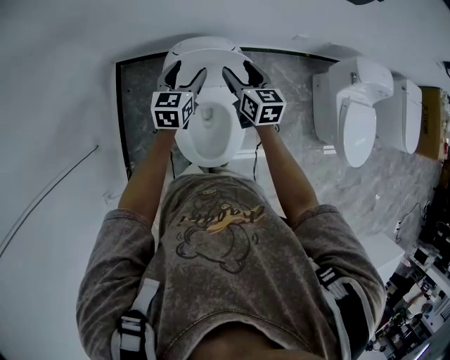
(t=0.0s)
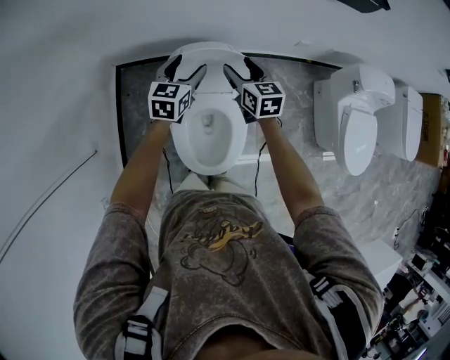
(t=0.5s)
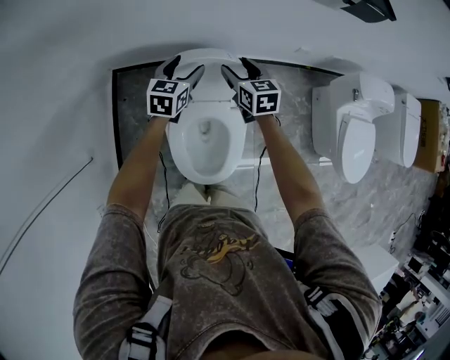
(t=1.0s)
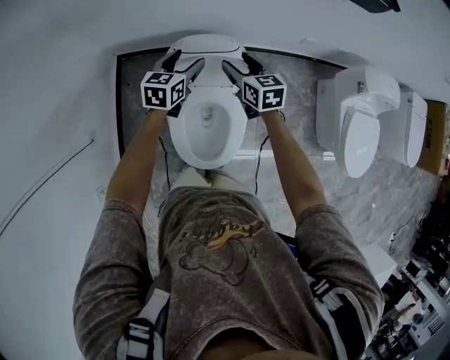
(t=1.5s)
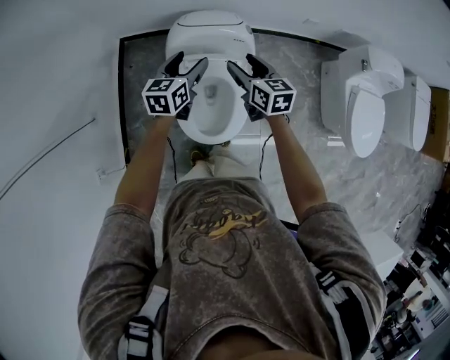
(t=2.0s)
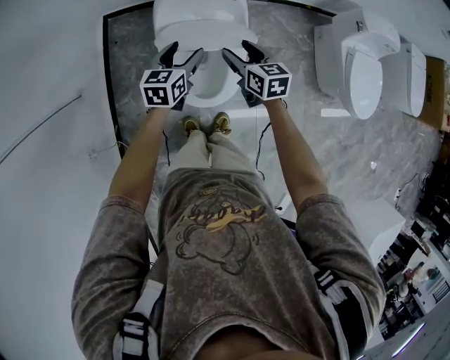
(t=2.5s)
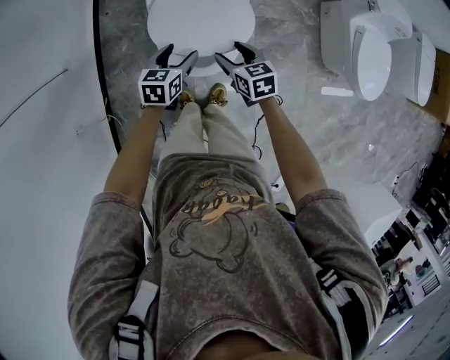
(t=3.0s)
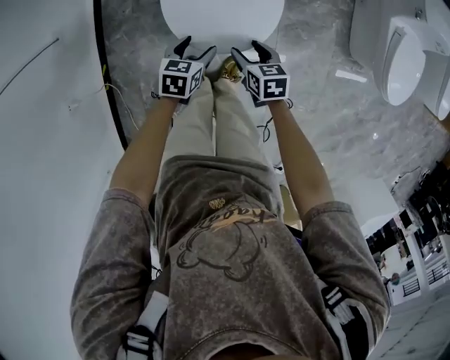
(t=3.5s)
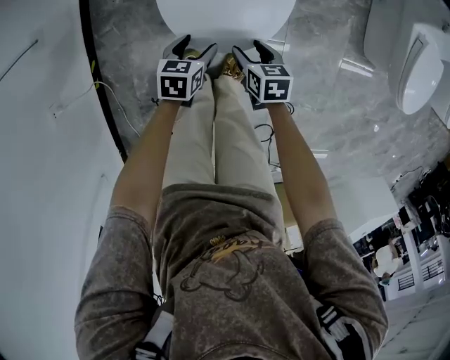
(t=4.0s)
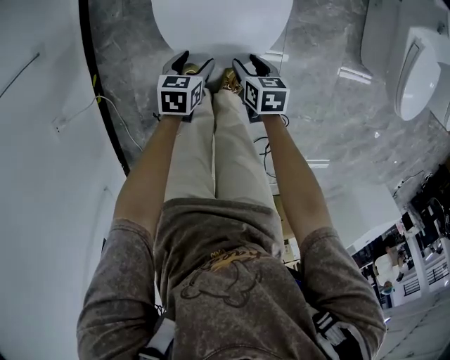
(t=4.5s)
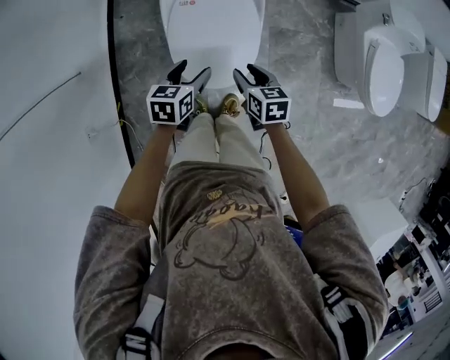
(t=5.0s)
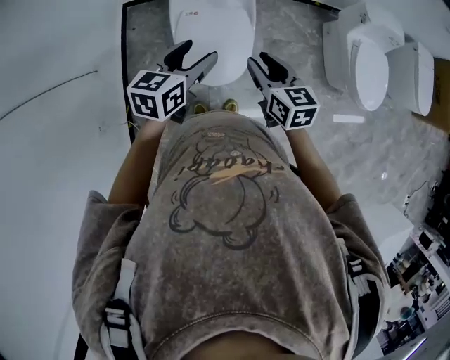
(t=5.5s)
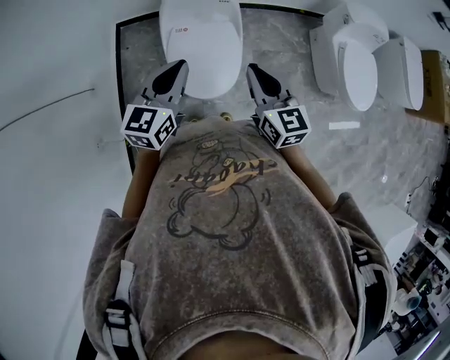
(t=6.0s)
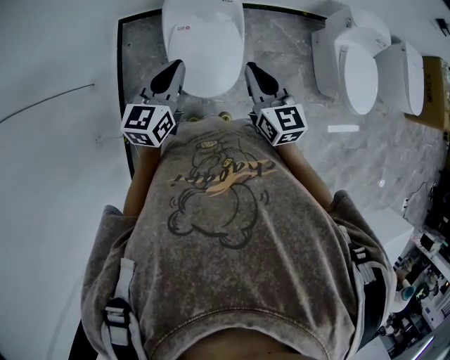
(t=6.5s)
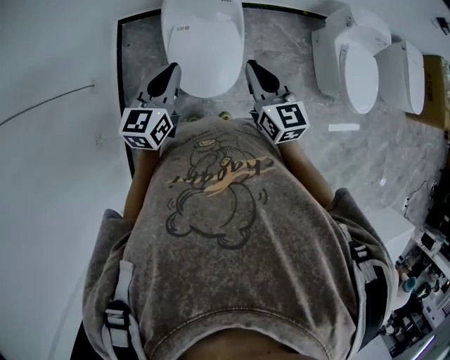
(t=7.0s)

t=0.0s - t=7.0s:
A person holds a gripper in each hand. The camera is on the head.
t=0.0s - t=2.0s: The two grippers go roughly 5 cm backward.
t=2.0s - t=3.5s: The two grippers go some 40 cm backward and downward. The right gripper swivels roughly 30 degrees; the left gripper changes its angle by about 30 degrees.
t=3.5s - t=5.0s: Both grippers travel together upward, some 15 cm.
t=5.0s - t=7.0s: The two grippers go about 25 cm upward. The left gripper changes its angle by roughly 30 degrees, and closes, while the right gripper points its fingers some 30 degrees further upward, and closes its fingers.

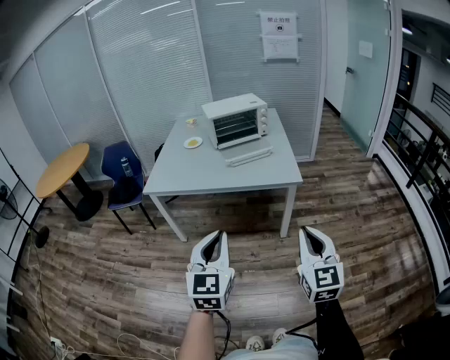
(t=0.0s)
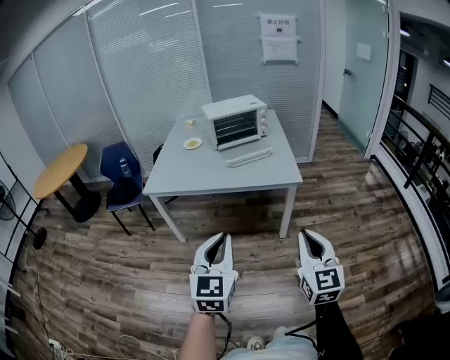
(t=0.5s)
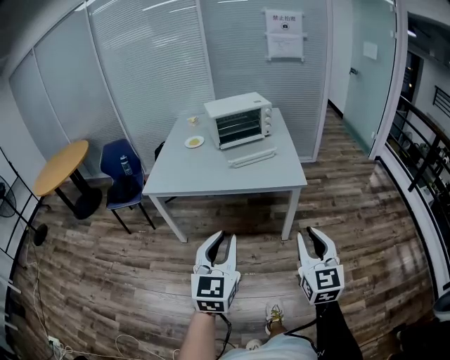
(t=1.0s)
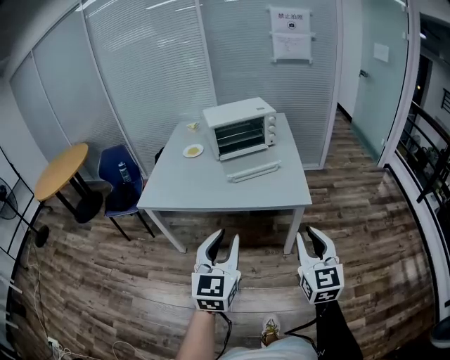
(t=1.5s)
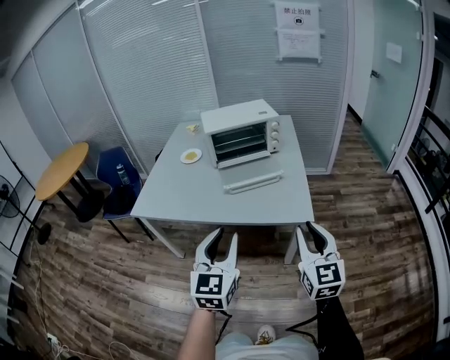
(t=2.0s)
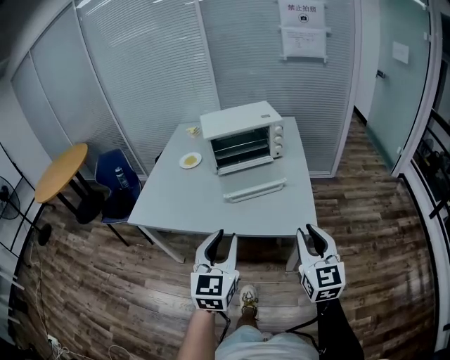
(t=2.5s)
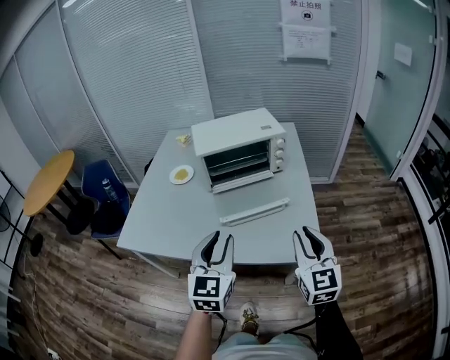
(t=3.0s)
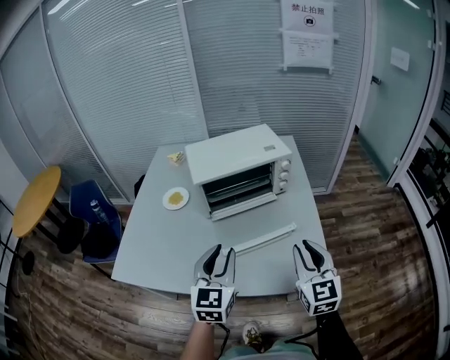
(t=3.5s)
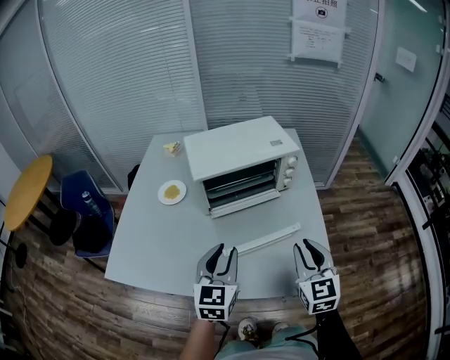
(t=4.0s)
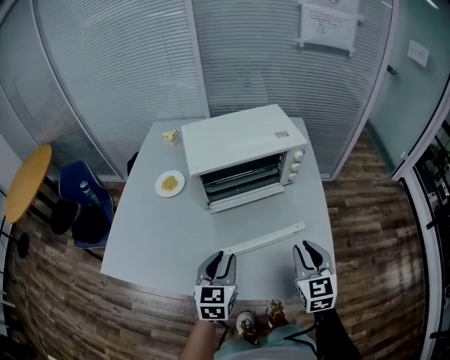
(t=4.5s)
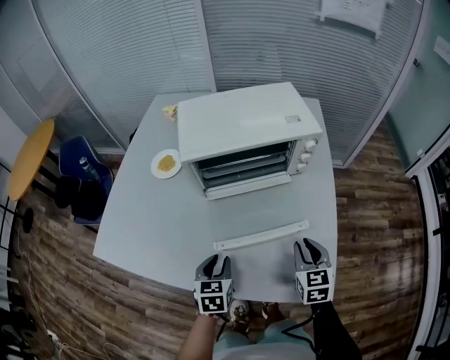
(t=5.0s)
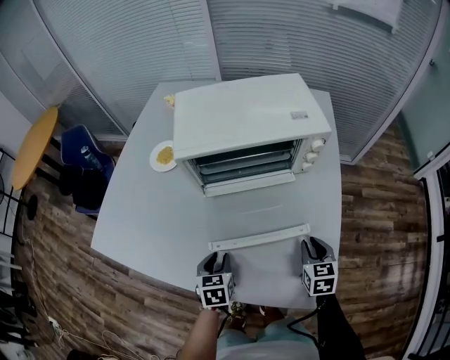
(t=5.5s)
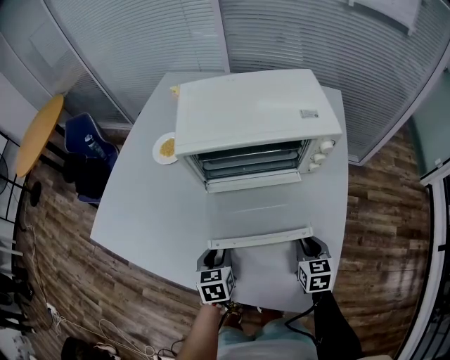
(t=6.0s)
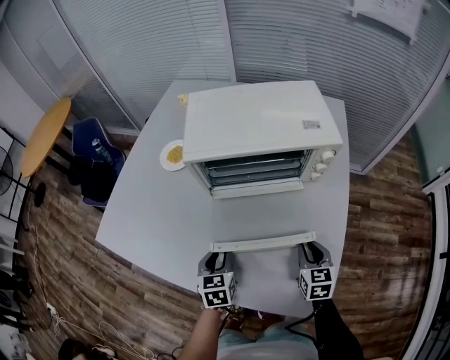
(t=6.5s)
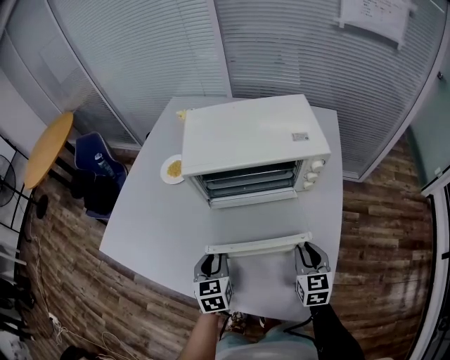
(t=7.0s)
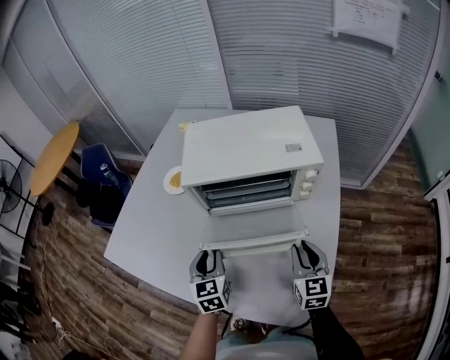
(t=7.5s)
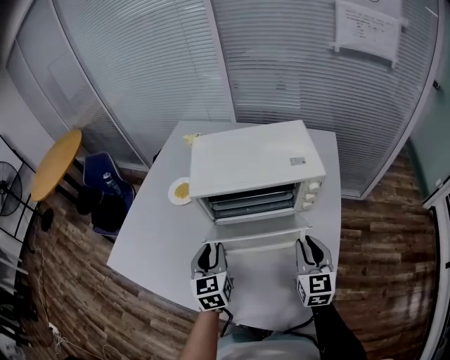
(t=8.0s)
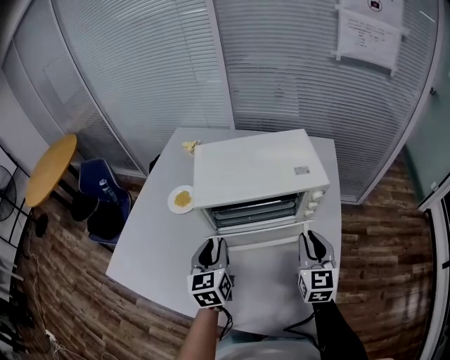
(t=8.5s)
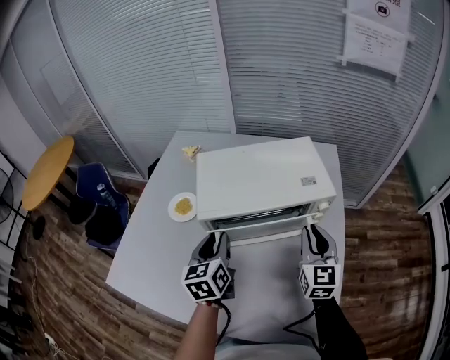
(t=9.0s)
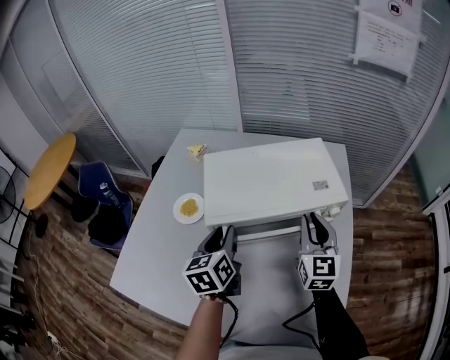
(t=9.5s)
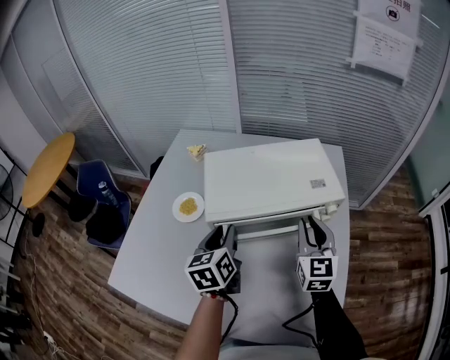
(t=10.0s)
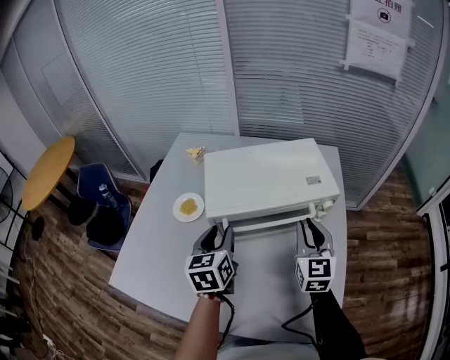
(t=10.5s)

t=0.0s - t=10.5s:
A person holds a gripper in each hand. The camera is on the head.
t=0.0s - t=2.0s: Both grippers travel together forward, about 25 cm.
t=2.0s - t=4.0s: Both grippers travel together forward, about 35 cm.
t=4.0s - t=6.5s: The right gripper heads downward and forward, covering roughly 25 cm, and swivels approximately 30 degrees. Meanwhile the left gripper is displaced downward by some 20 cm, and turns by roughly 40 degrees.
t=6.5s - t=8.5s: Both grippers travel together upward and forward, some 20 cm. The left gripper swivels some 20 degrees. Meanwhile the right gripper changes its angle by roughly 30 degrees.
t=8.5s - t=10.5s: The two grippers go some 5 cm forward.

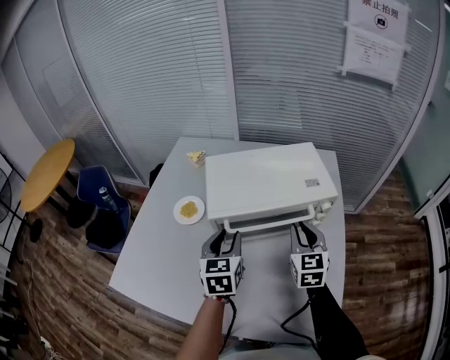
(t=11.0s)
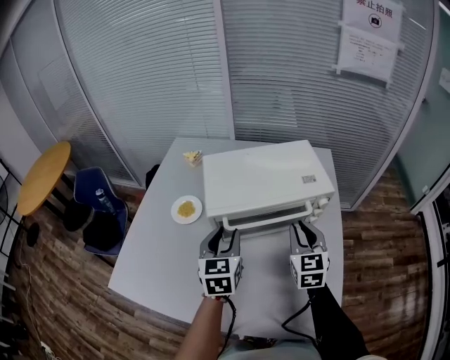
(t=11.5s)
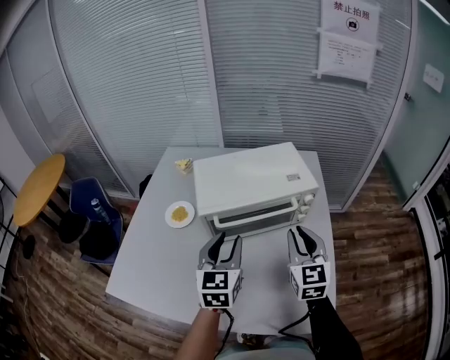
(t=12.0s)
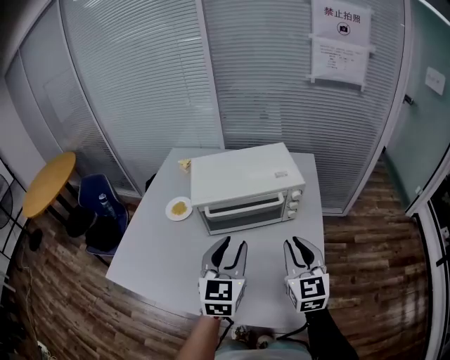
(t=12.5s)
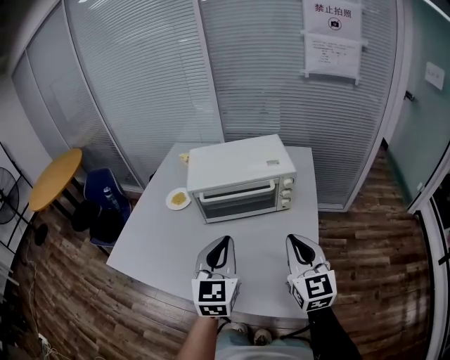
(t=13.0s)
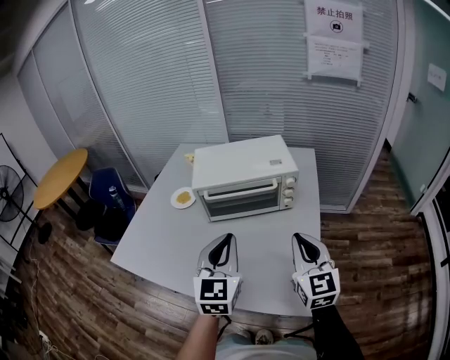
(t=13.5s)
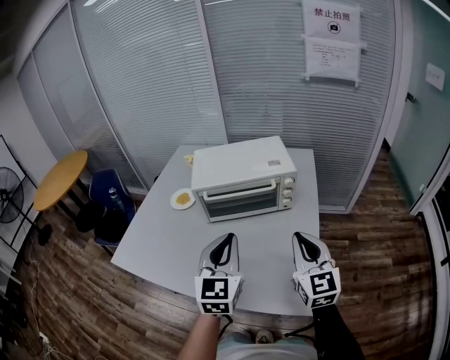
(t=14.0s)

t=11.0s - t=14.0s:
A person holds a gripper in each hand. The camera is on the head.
t=11.0s - t=12.5s: The right gripper goes roughly 15 cm backward and upward. Meanwhile the left gripper travels backward, to the right and upward by some 20 cm.
t=12.5s - t=14.0s: The two grippers go about 5 cm backward. The left gripper closes up.

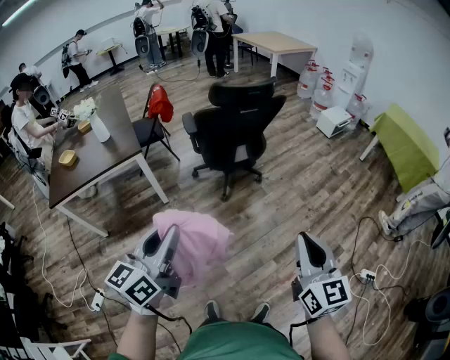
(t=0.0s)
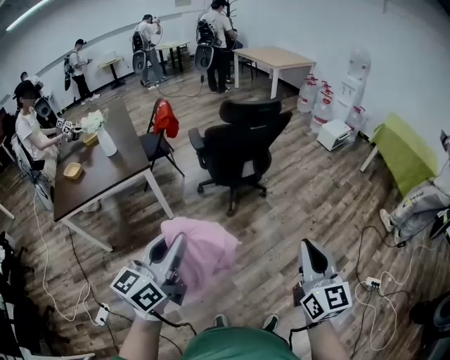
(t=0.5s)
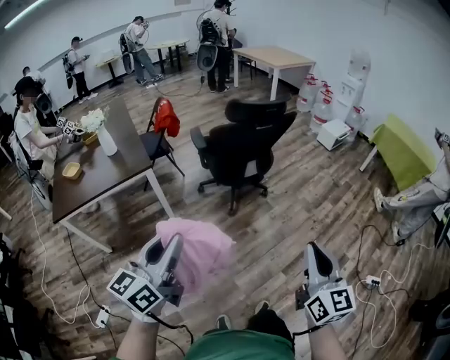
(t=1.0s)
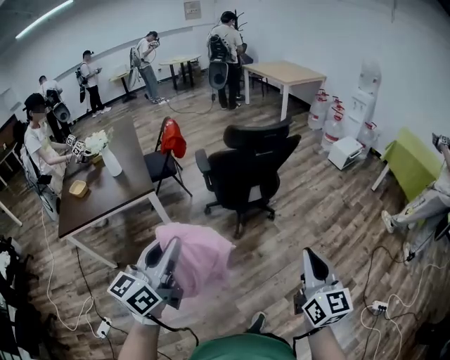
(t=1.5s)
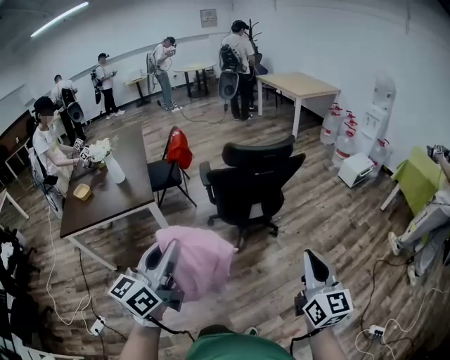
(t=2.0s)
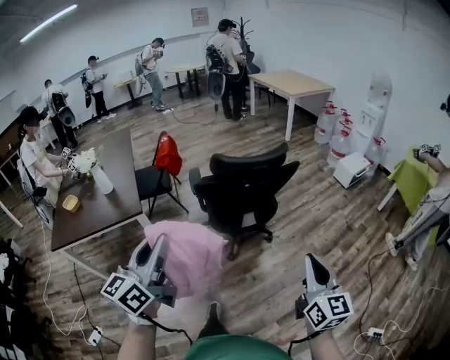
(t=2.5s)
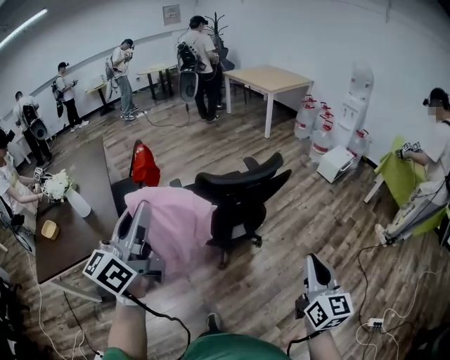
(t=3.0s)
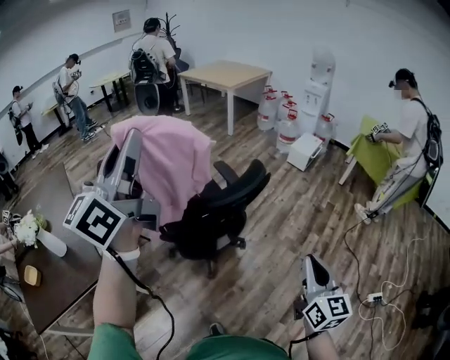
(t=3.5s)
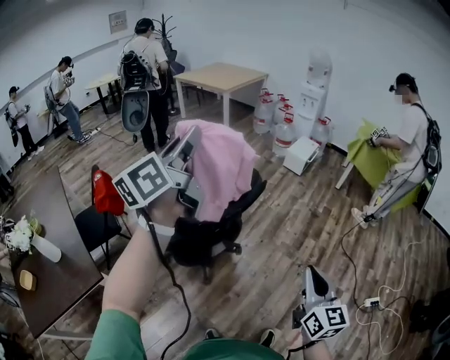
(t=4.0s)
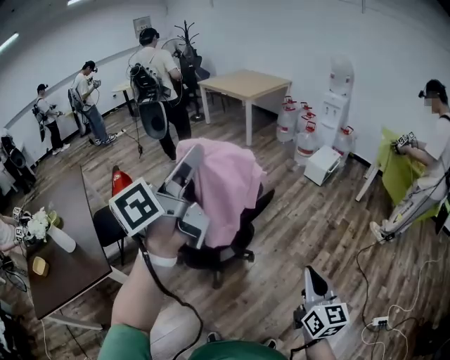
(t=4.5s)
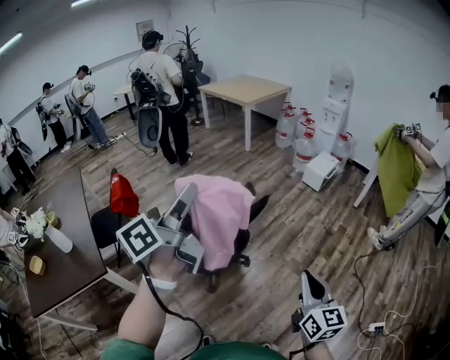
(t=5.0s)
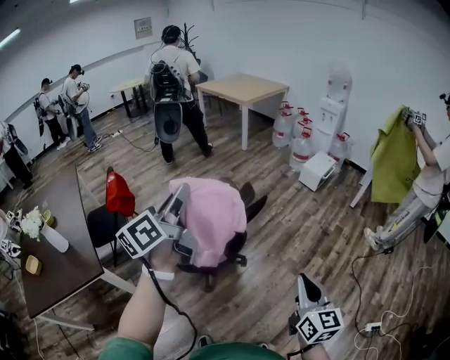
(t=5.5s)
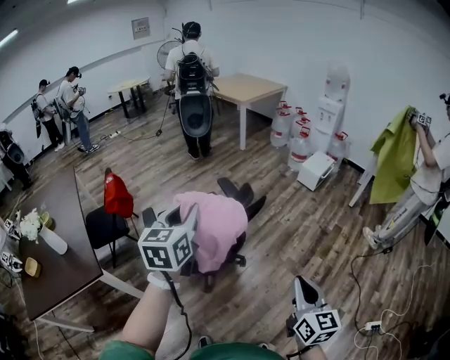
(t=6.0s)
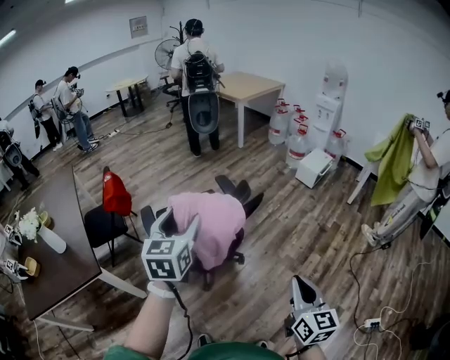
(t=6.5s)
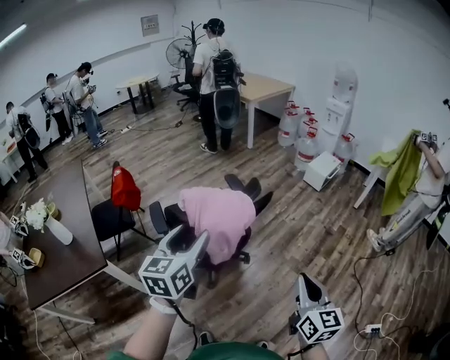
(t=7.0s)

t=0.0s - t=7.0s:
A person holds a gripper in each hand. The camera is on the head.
t=0.0s - t=2.0s: The two grippers go approximately 20 cm forward.
t=2.0s - t=3.5s: The right gripper moves forward, roughly 20 cm, and changes its angle by about 30 degrees; the left gripper goes approximately 50 cm forward and upward, and turns by about 30 degrees.
t=3.5s - t=5.0s: The right gripper heads to the right and forward, covering roughly 10 cm. The left gripper shifts some 20 cm to the right, downward and forward, and rotates roughly 40 degrees.
t=5.0s - t=7.0s: The left gripper goes about 15 cm downward, twists some 40 degrees clockwise, seen from behind, and opens up.
